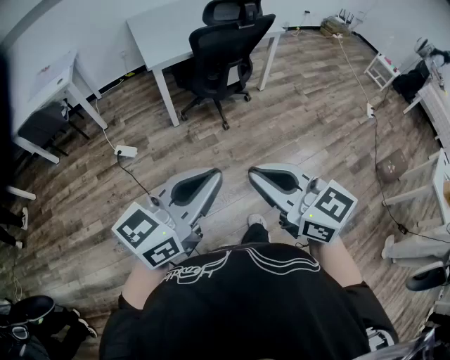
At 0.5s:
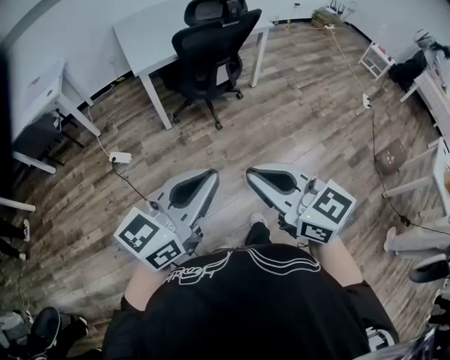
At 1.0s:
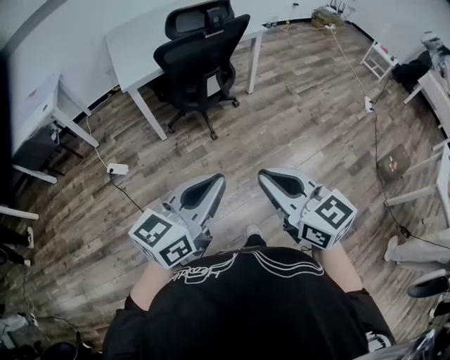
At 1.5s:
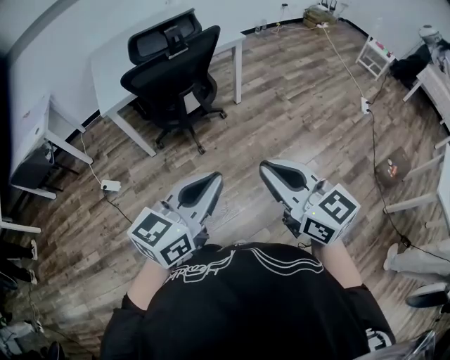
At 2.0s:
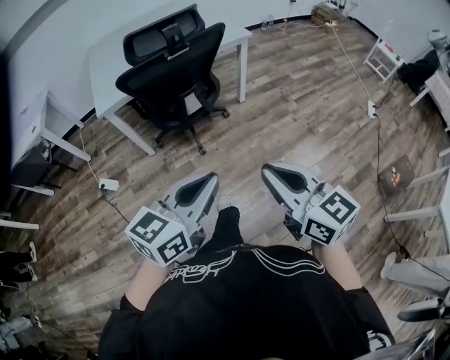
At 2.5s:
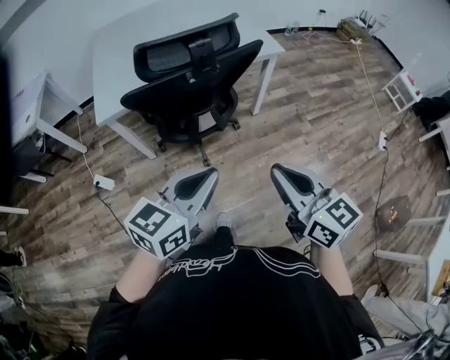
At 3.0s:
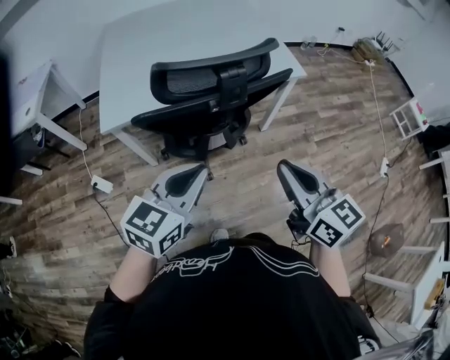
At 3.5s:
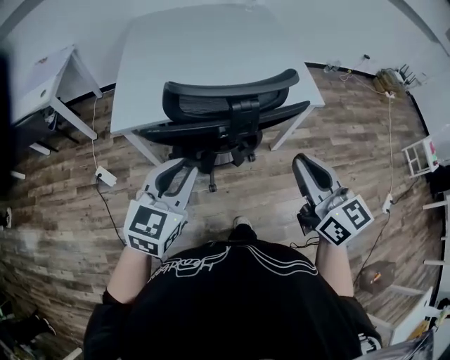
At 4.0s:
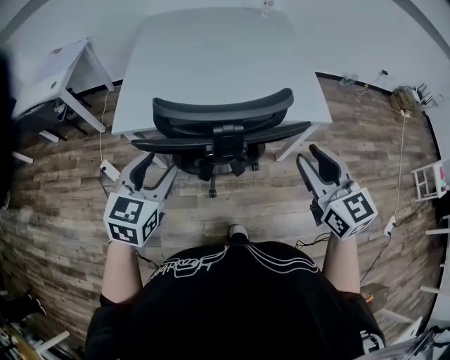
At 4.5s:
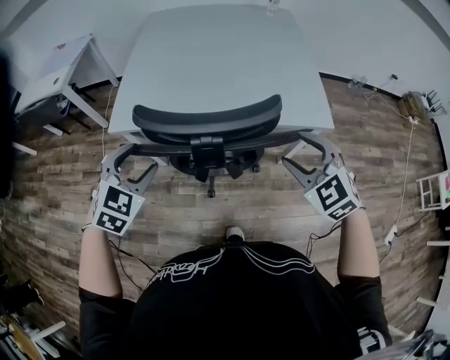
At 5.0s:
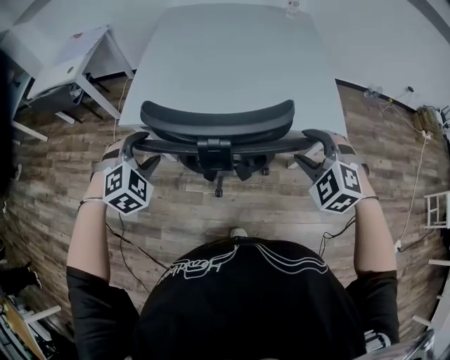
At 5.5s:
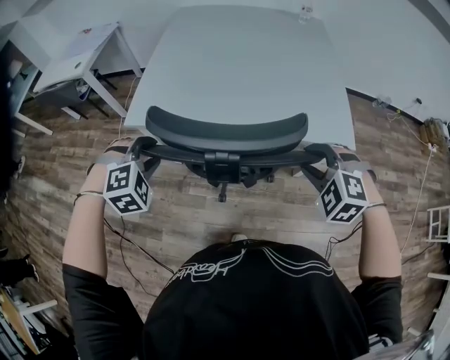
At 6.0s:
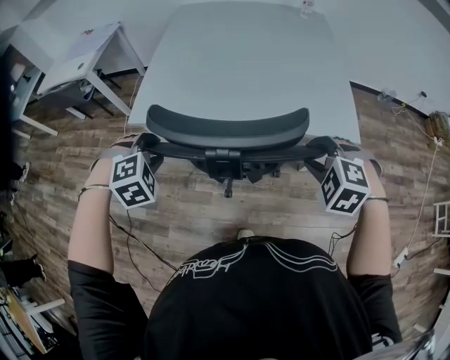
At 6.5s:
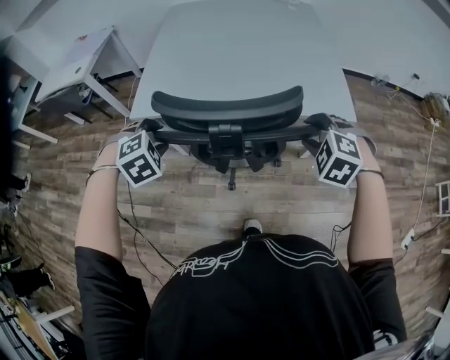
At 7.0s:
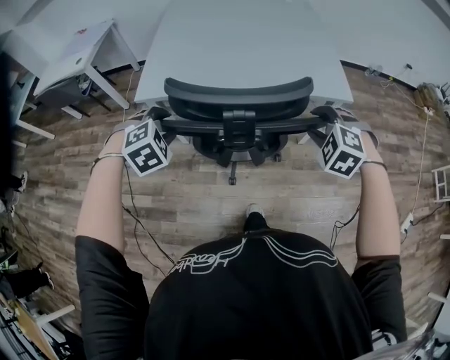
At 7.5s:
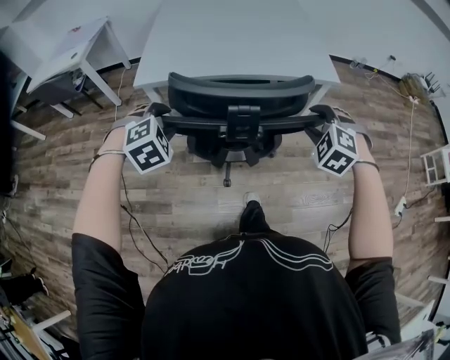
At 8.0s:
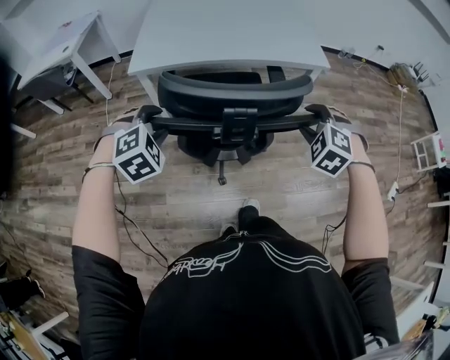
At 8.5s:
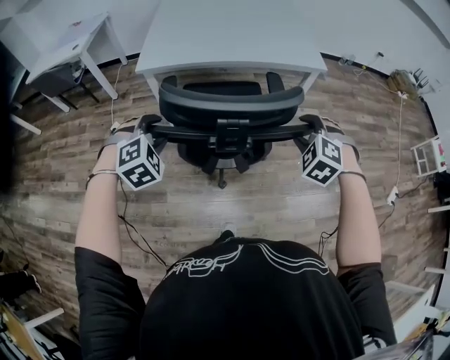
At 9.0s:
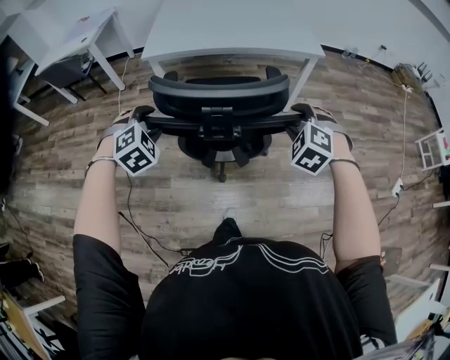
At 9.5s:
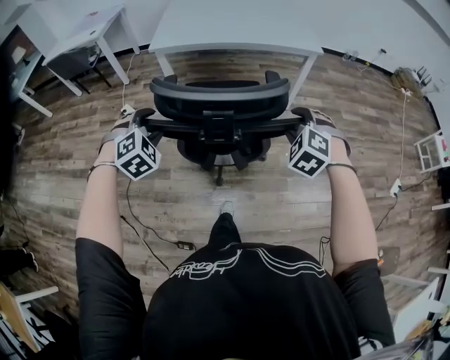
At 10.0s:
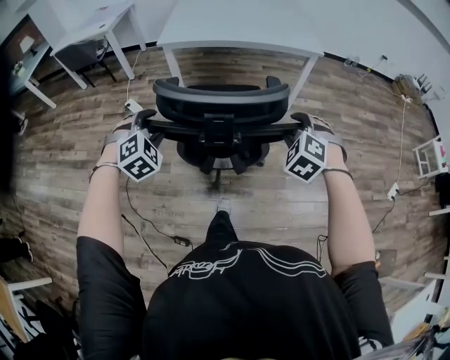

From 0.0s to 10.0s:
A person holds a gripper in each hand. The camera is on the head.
From 0.0s to 2.0s: The right gripper is displaced to the right and forward by approximately 40 cm. The left gripper shifts some 35 cm forward and to the right.
From 2.0s to 4.0s: Both grippers are carried roughly 50 cm. The left gripper turns by roughly 50 degrees, and opens its fingers; the right gripper swivels some 20 degrees, and opens.
From 4.0s to 6.0s: The grippers both shift downward and forward by roughly 10 cm. The left gripper points its fingers approximately 40 degrees further downward, while the right gripper angles its fingers downward, by about 50 degrees, and opens and closes again.
From 6.0s to 8.0s: The grippers both shift backward by approximately 25 cm. The right gripper swivels about 20 degrees.
From 8.0s to 10.0s: Both grippers travel together backward, roughly 25 cm.

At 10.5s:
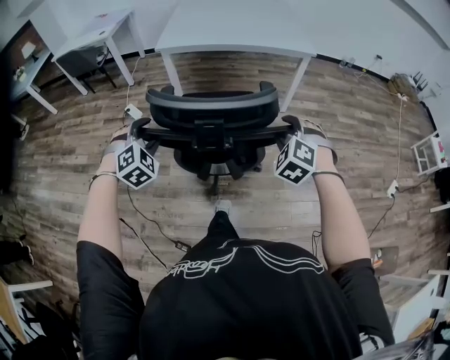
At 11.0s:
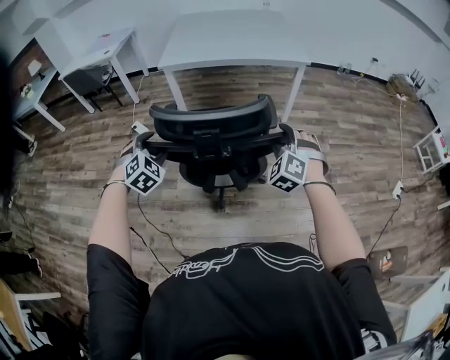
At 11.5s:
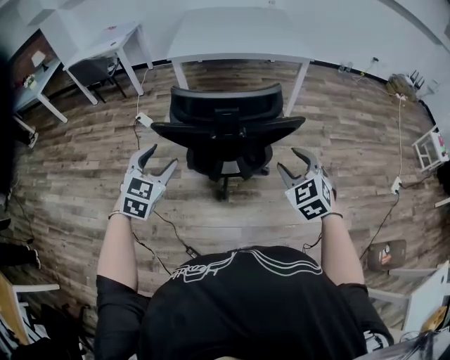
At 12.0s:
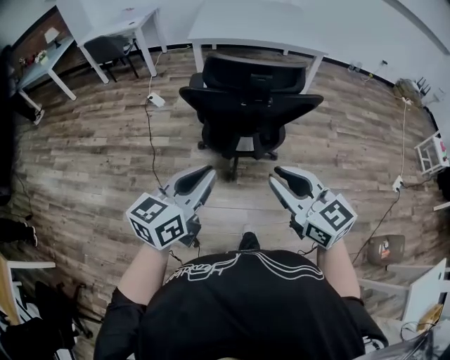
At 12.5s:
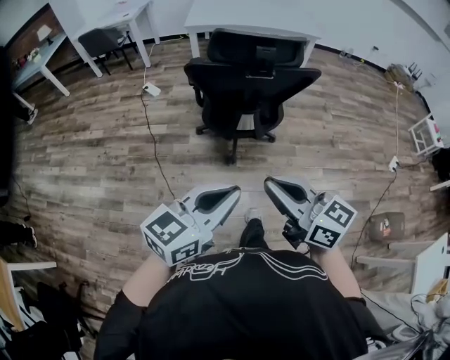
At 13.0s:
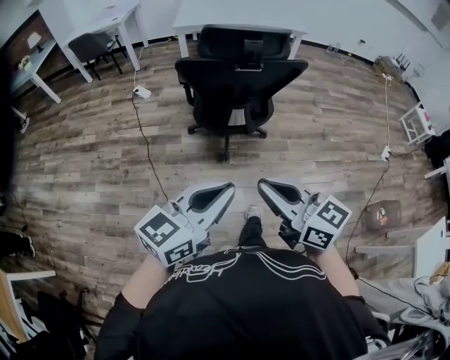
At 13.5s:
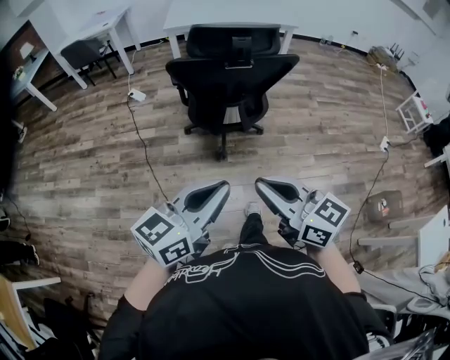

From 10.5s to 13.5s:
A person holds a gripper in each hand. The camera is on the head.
From 10.5s to 12.0s: The left gripper heads backward, covering approximately 35 cm, twists about 70 degrees counterclockwise, seen from behind, and closes up, while the right gripper heads backward and to the left, covering about 40 cm, turns by roughly 70 degrees, and closes its fingers.
From 12.0s to 13.5s: Both grippers travel together backward, about 15 cm.

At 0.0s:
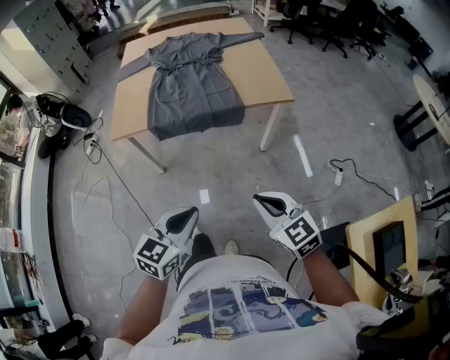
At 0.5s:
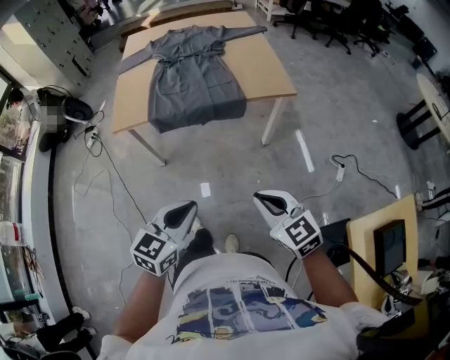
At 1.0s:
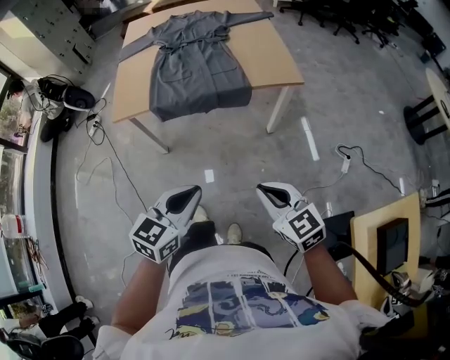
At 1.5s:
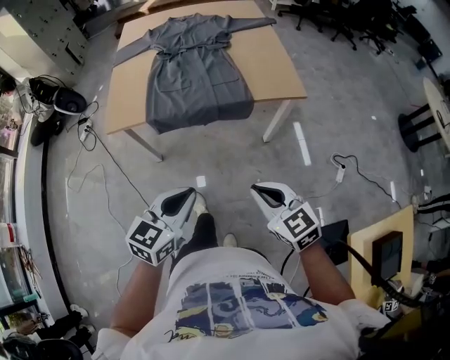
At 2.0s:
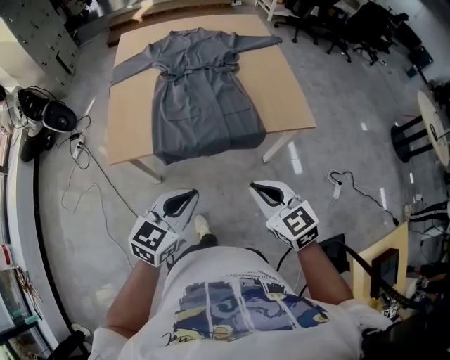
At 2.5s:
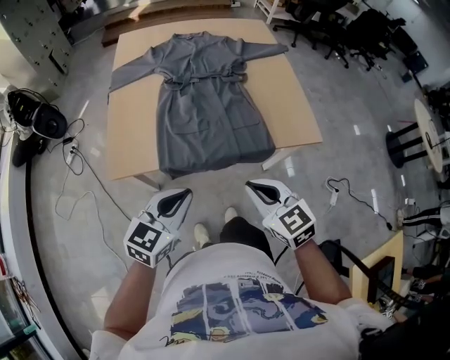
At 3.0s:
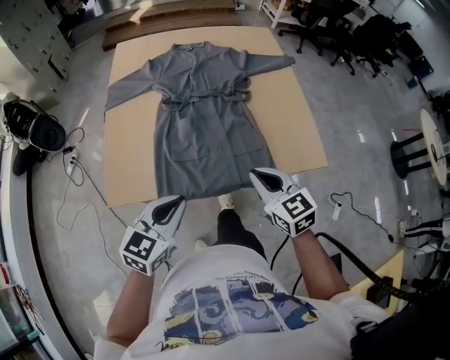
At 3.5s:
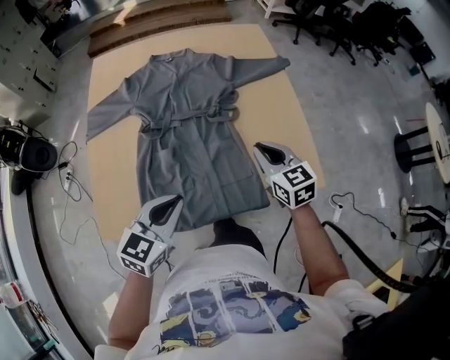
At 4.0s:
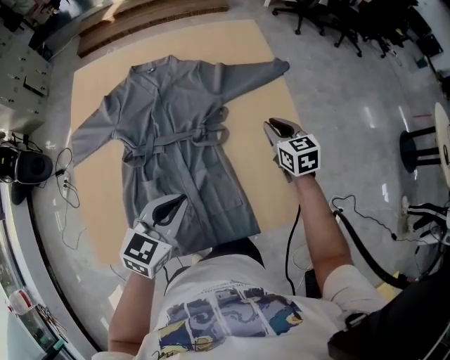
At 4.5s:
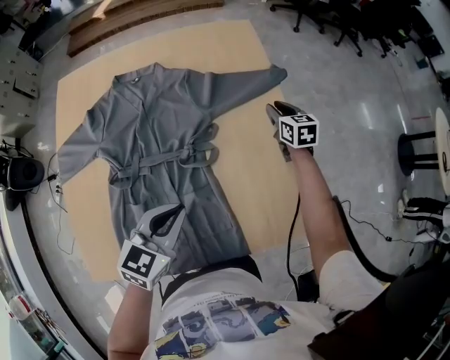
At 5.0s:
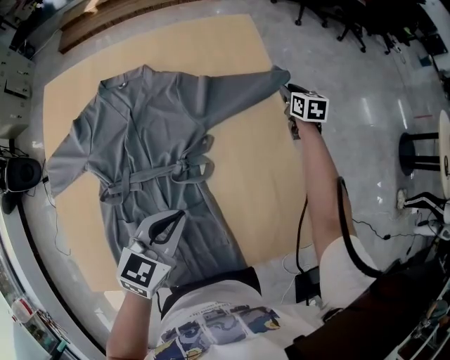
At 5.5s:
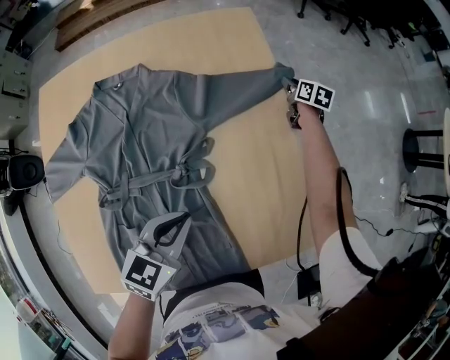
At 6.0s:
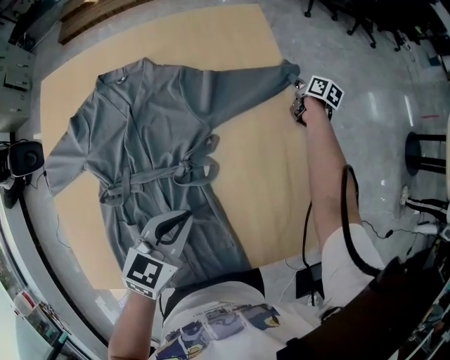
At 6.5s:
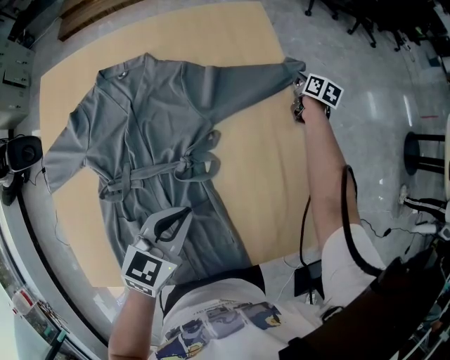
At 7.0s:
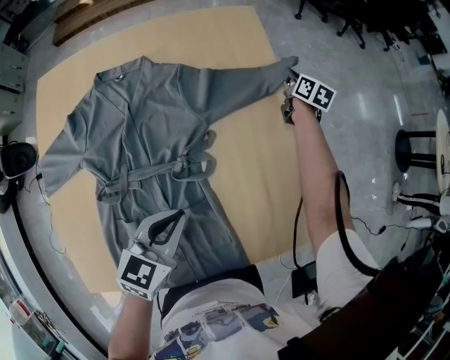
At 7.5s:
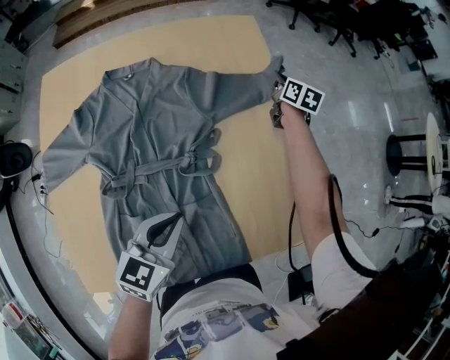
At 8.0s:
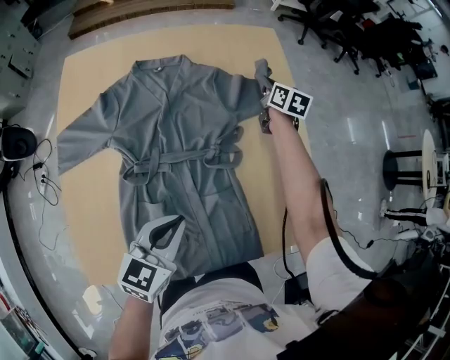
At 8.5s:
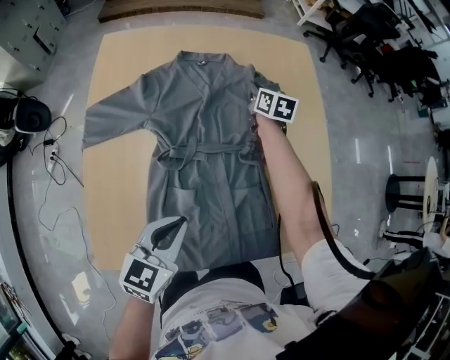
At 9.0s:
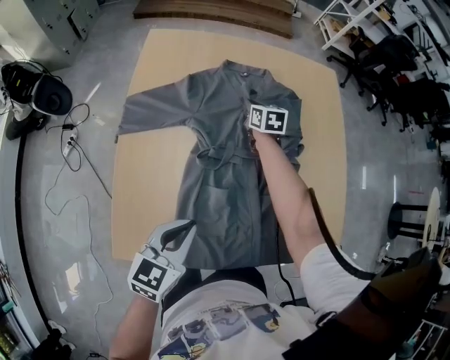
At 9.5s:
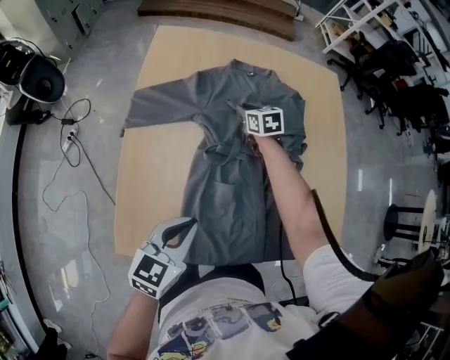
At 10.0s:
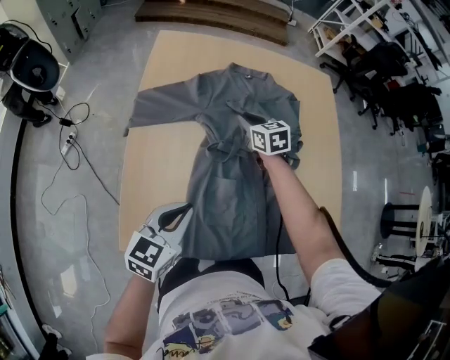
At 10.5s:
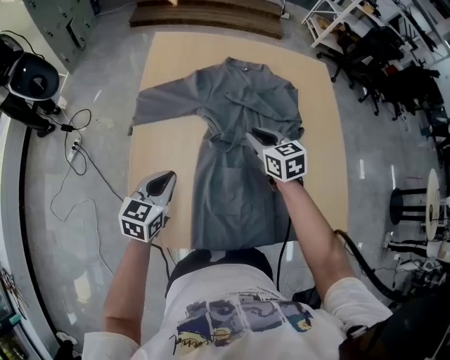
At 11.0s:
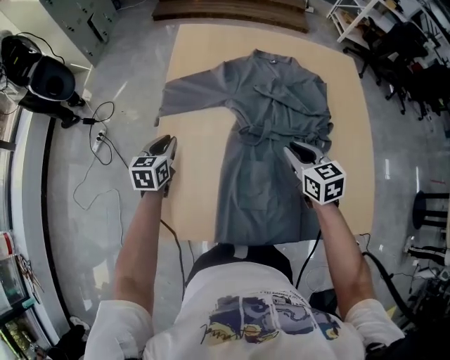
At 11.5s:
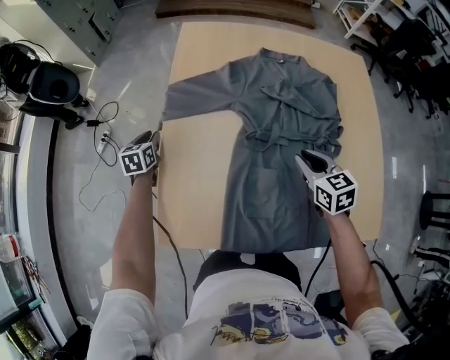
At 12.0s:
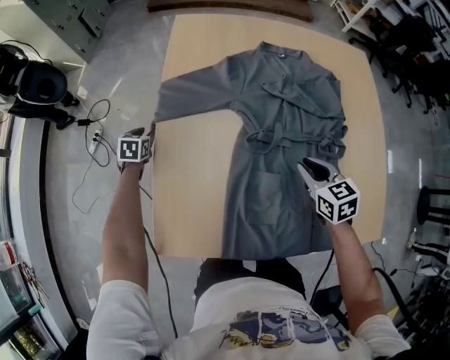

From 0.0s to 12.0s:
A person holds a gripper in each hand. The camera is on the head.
From 0.0s to 2.0s: The right gripper shifts roughly 25 cm forward and to the left, while the left gripper moves forward, some 25 cm.
From 2.0s to 4.0s: Both grippers are carried forward, roughly 50 cm. The right gripper changes its angle by some 20 degrees.
From 4.0s to 6.0s: The right gripper goes about 40 cm forward and downward, and rolls clockwise, seen from behind, by approximately 50 degrees. The left gripper travels forward and downward by roughly 15 cm.
From 6.0s to 8.0s: The right gripper shifts roughly 30 cm to the left, upward and backward, changes its angle by some 20 degrees, and closes its fingers. The left gripper goes some 15 cm backward and to the left.
From 8.0s to 10.0s: The left gripper heads to the left and backward, covering some 25 cm. Meanwhile the right gripper moves to the left and backward, about 40 cm, and rotates approximately 40 degrees.
From 10.0s to 12.0s: The right gripper is displaced backward by roughly 15 cm. The left gripper is displaced forward, downward and to the left by roughly 40 cm, tips its fingers downward by about 30 degrees, and opens up.

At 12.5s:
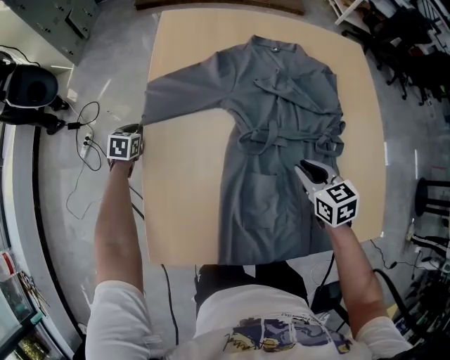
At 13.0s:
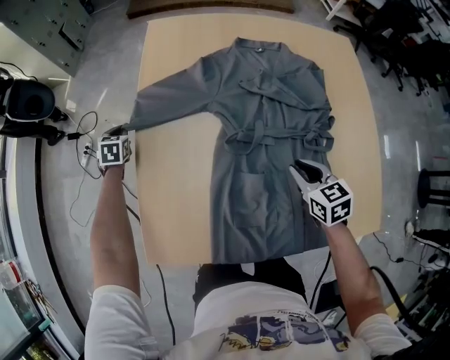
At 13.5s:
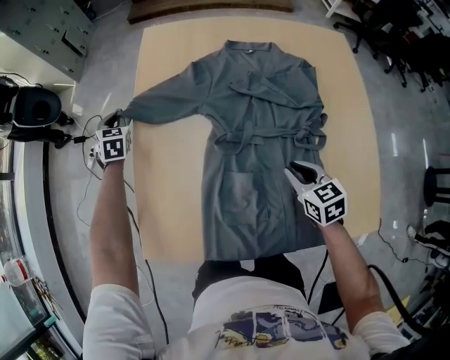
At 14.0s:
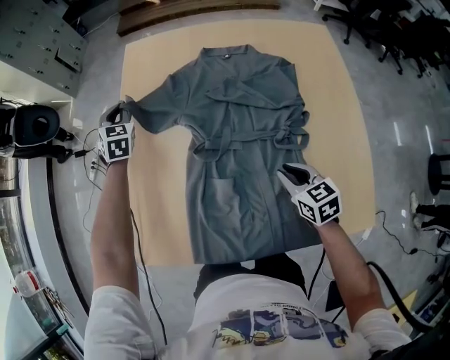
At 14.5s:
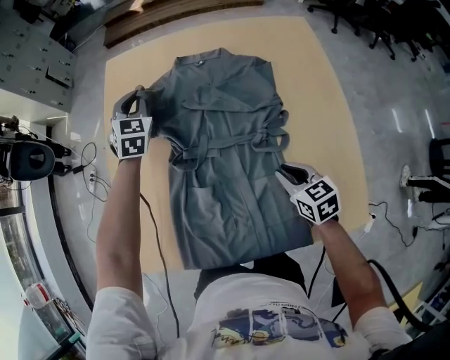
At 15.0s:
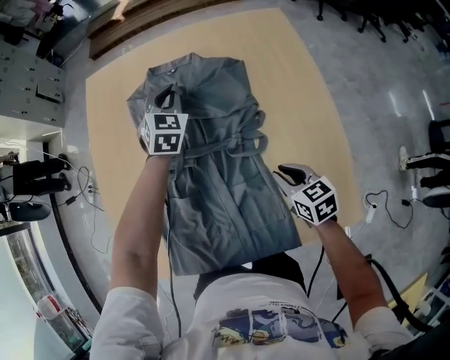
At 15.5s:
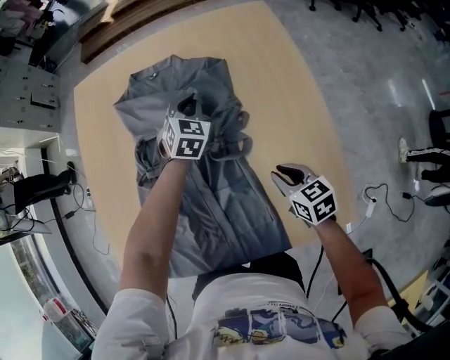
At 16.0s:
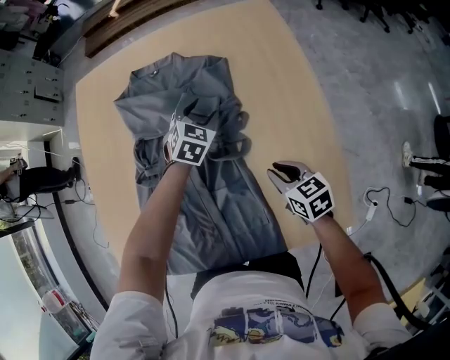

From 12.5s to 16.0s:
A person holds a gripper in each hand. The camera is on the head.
From 12.5s to 14.5s: The left gripper travels to the right and upward by roughly 40 cm, and rotates roughly 40 degrees; the right gripper moves to the right and backward, roughly 15 cm.
From 14.5s to 16.0s: The right gripper travels to the right by some 10 cm. Meanwhile the left gripper travels to the right and downward by some 35 cm, changes its angle by approximately 30 degrees, and opens its fingers.
